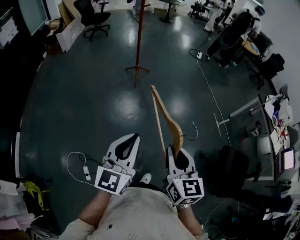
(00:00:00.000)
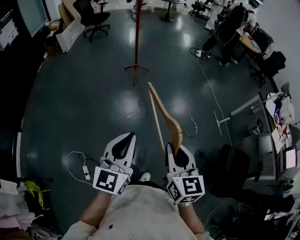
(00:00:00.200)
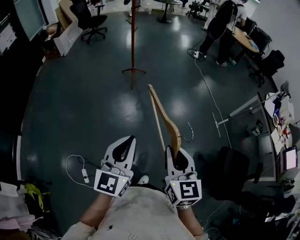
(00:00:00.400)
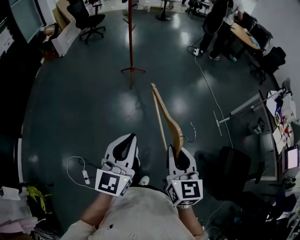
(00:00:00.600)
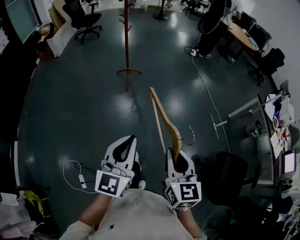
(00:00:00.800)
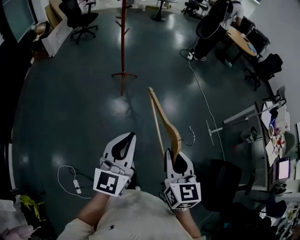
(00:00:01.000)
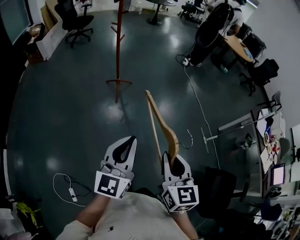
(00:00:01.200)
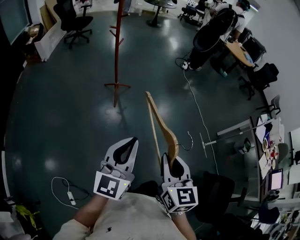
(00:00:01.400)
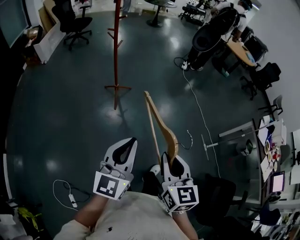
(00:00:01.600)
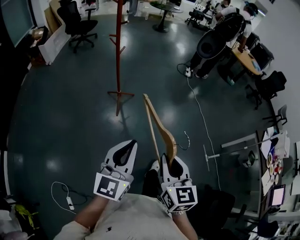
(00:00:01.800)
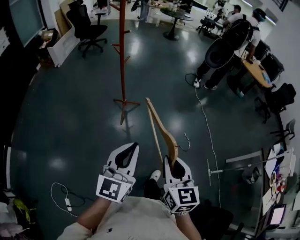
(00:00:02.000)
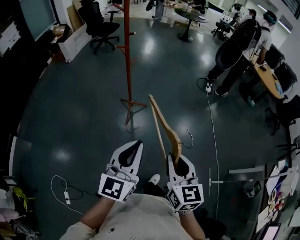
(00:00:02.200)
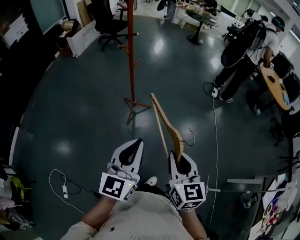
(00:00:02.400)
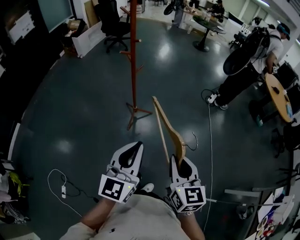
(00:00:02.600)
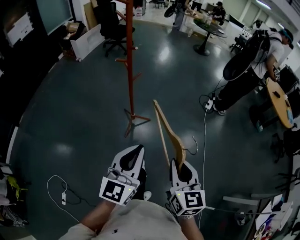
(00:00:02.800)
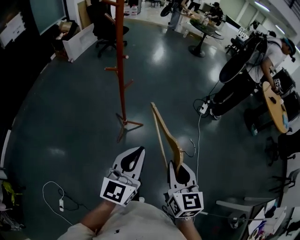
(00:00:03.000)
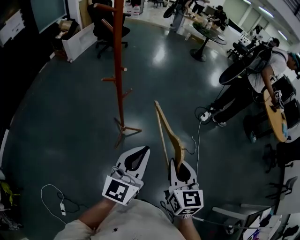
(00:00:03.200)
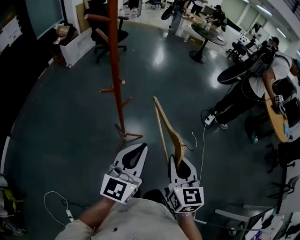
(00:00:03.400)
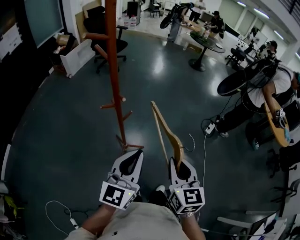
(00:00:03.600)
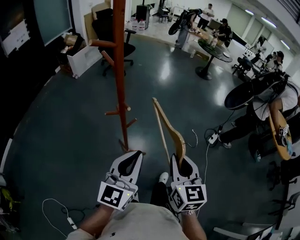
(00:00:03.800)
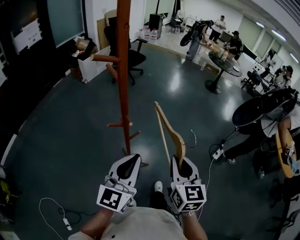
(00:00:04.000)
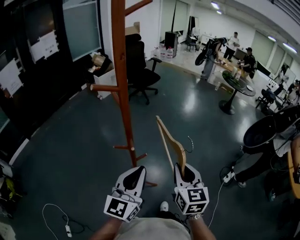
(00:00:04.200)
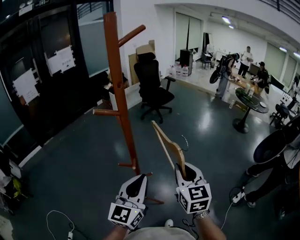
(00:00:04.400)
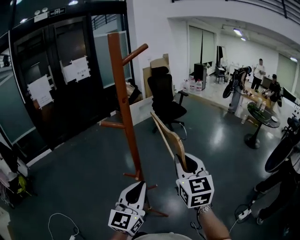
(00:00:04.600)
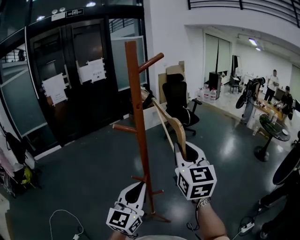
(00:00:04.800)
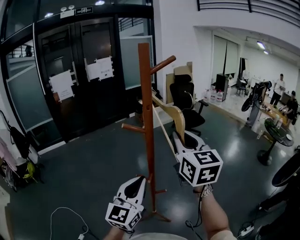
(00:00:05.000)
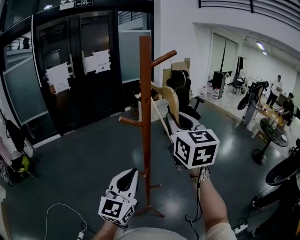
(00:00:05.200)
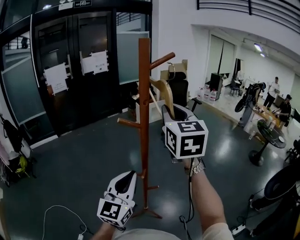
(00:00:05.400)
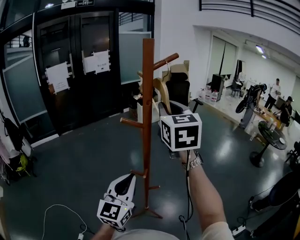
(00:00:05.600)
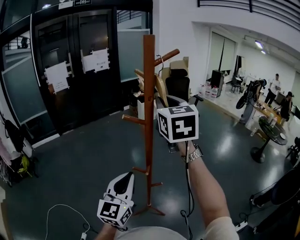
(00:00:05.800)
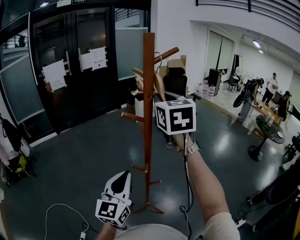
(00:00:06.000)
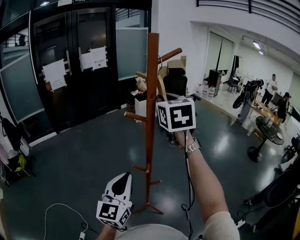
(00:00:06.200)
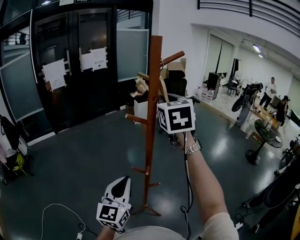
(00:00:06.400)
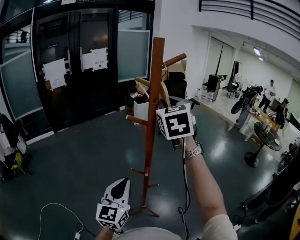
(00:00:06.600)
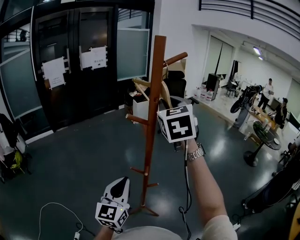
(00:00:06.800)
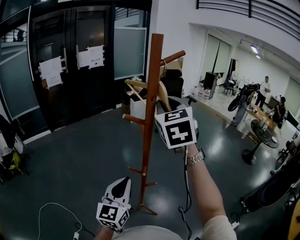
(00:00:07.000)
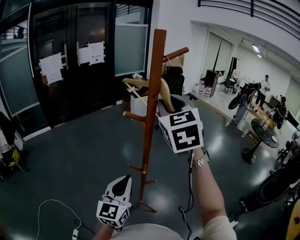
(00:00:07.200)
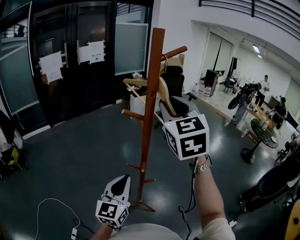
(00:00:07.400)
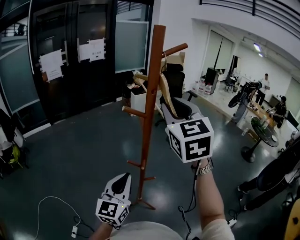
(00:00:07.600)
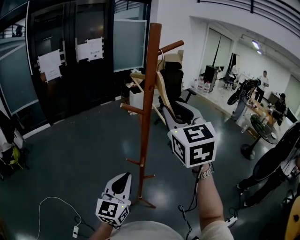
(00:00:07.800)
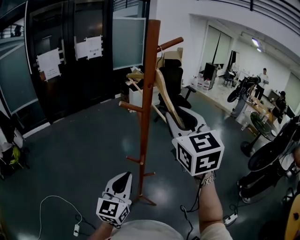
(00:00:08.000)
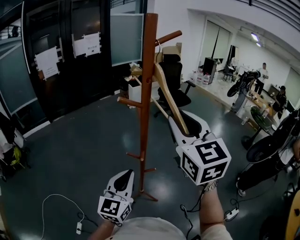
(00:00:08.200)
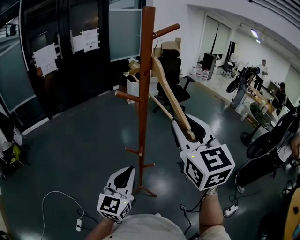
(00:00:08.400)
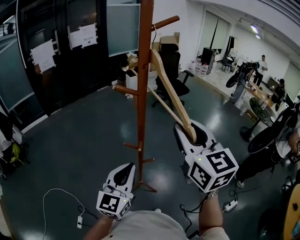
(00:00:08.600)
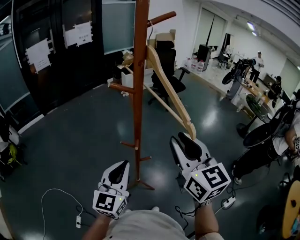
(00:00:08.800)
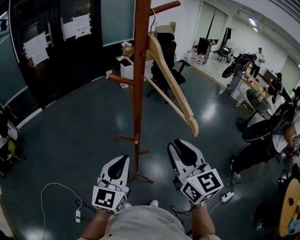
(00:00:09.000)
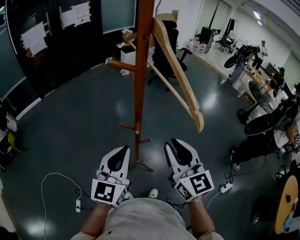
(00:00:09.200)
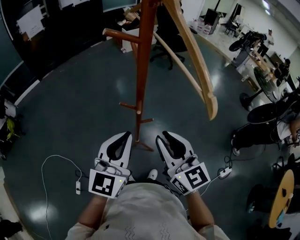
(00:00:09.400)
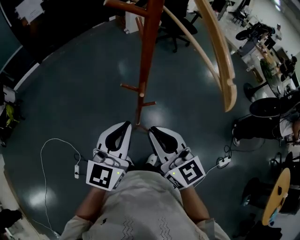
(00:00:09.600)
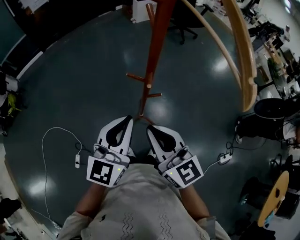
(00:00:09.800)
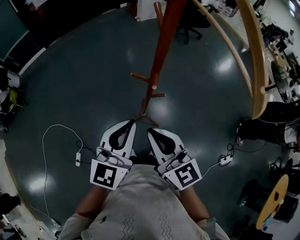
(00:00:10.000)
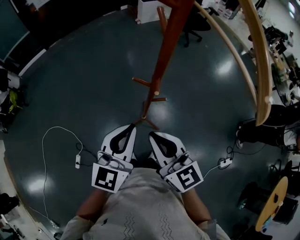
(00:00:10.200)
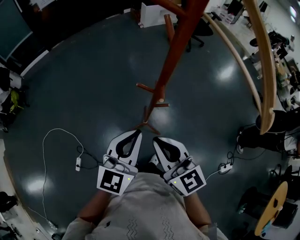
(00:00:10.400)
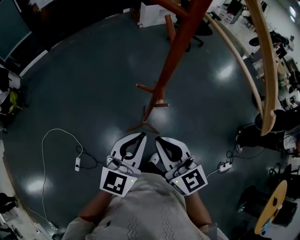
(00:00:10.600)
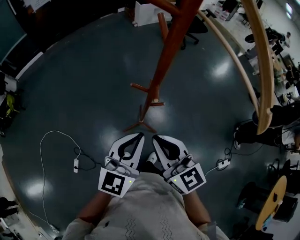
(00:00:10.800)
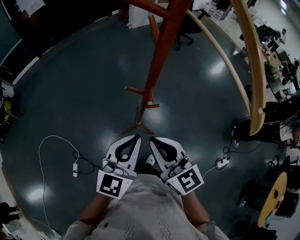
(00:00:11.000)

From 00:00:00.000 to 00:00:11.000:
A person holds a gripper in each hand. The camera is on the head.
From 00:00:00.000 to 00:00:01.600: The two grippers go roughly 40 cm forward.
From 00:00:01.600 to 00:00:03.200: Both grippers are carried forward, roughly 60 cm. The right gripper rotates some 20 degrees.
From 00:00:03.200 to 00:00:04.800: The left gripper ends up about 30 cm from where it was, and changes its angle by some 40 degrees. Meanwhile the right gripper ends up approximately 50 cm from where it was, and turns by about 50 degrees.
From 00:00:04.800 to 00:00:06.200: The left gripper shifts roughly 10 cm to the left; the right gripper heads to the left, upward and forward, covering about 20 cm.
From 00:00:06.200 to 00:00:07.800: The right gripper shifts some 10 cm backward.
From 00:00:07.800 to 00:00:09.400: The right gripper shifts roughly 30 cm downward and backward, and rotates some 20 degrees.
From 00:00:09.400 to 00:00:11.000: The right gripper moves downward and to the left, about 10 cm. The left gripper travels downward by approximately 10 cm.
